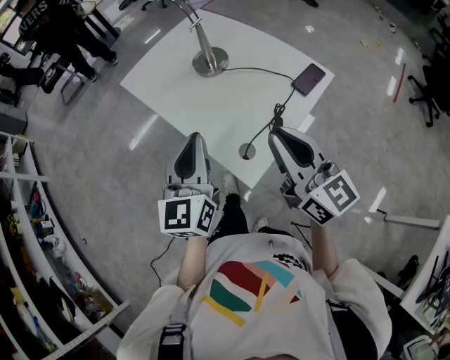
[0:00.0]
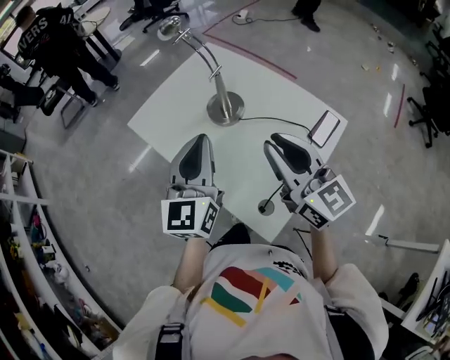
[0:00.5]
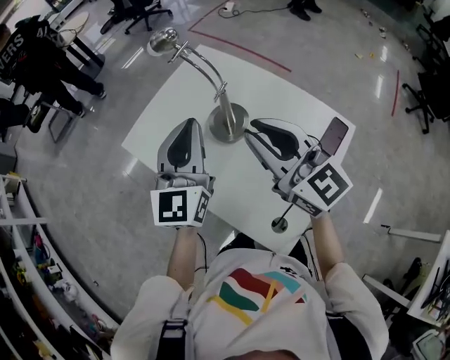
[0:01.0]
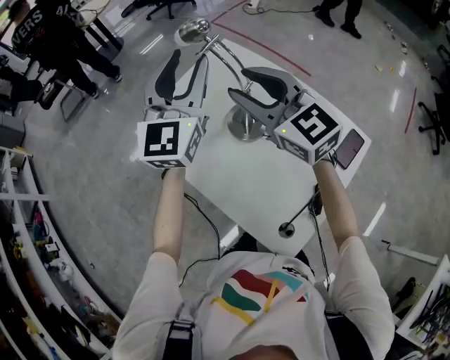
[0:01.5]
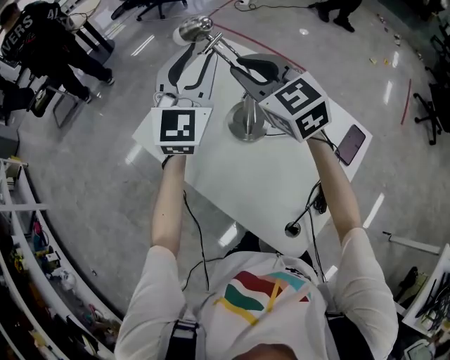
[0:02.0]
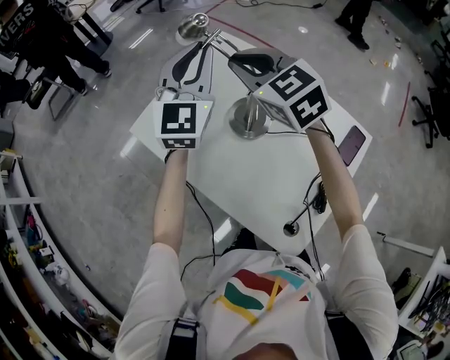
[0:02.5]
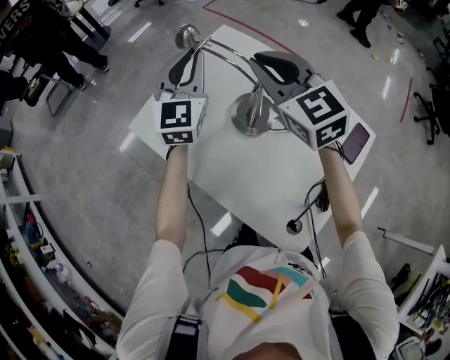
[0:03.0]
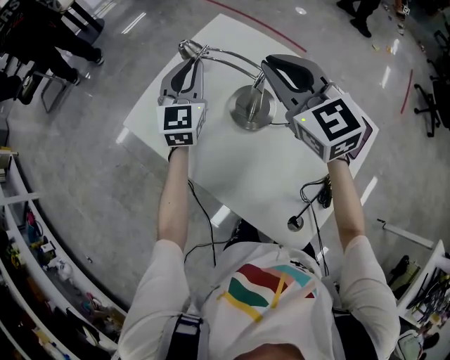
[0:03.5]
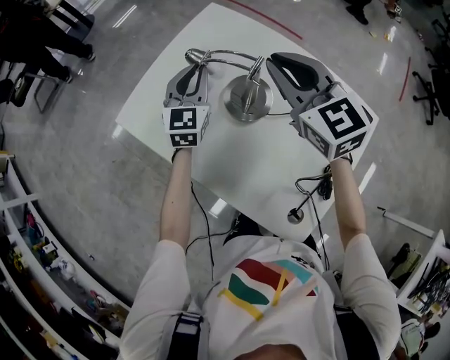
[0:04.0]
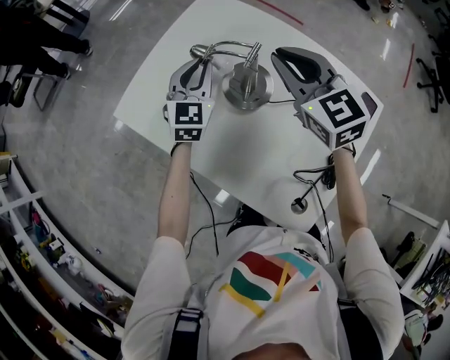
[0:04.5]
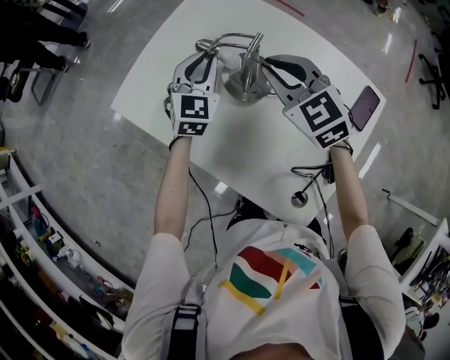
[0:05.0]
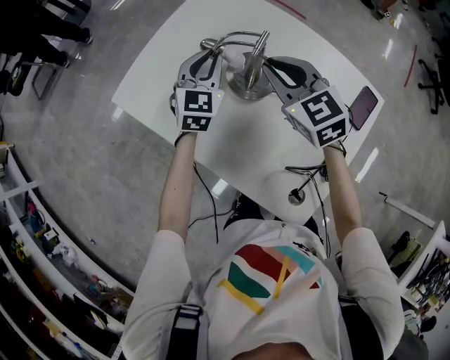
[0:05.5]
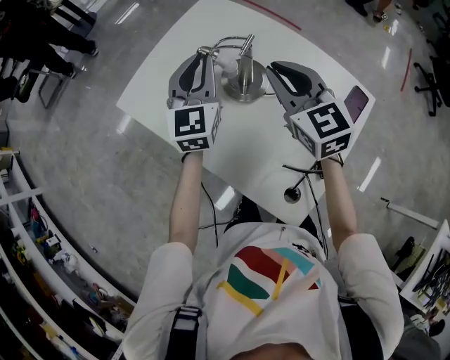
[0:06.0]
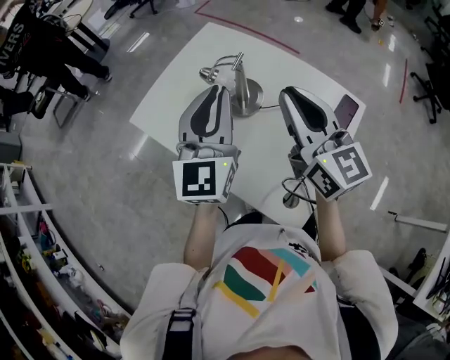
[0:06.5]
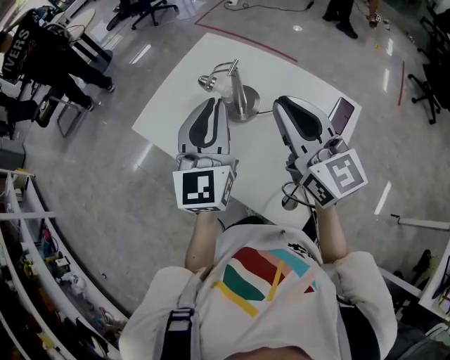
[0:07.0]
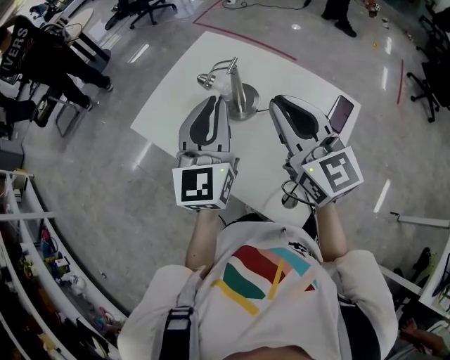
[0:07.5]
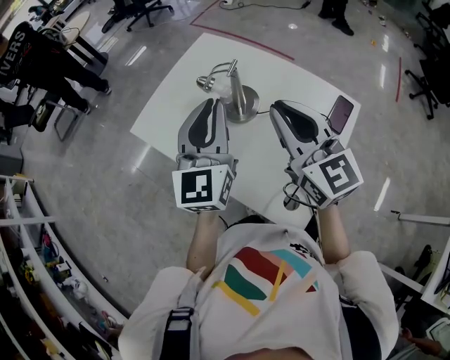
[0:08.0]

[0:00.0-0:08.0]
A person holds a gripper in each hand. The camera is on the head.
0:00.0 to 0:02.0: The pair of grippers is taken forward, roughly 50 cm. The right gripper swivels approximately 30 degrees, and opens and closes again. Meanwhile the left gripper rotates about 30 degrees, and opens.
0:02.0 to 0:04.0: The right gripper goes about 5 cm downward; the left gripper goes roughly 20 cm downward, swivels some 20 degrees, and closes.
0:04.0 to 0:06.0: The right gripper travels backward by some 5 cm, while the left gripper heads backward and upward, covering approximately 10 cm.
0:06.0 to 0:08.0: Both grippers travel together backward and upward, approximately 15 cm.

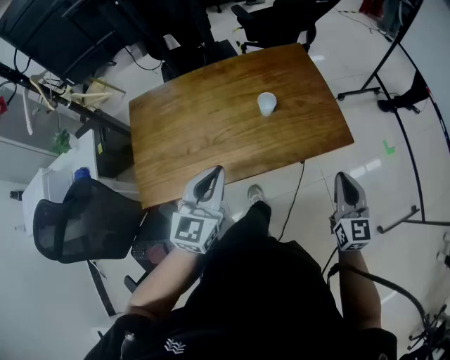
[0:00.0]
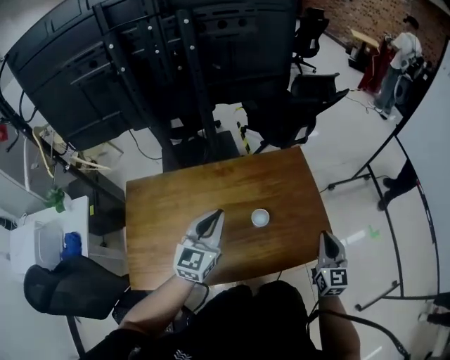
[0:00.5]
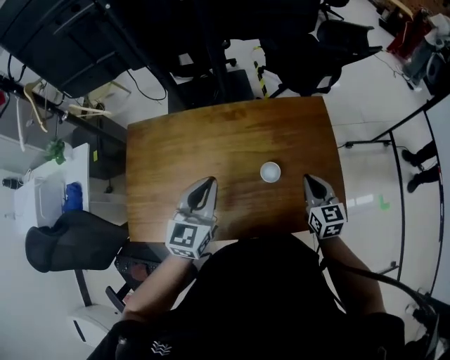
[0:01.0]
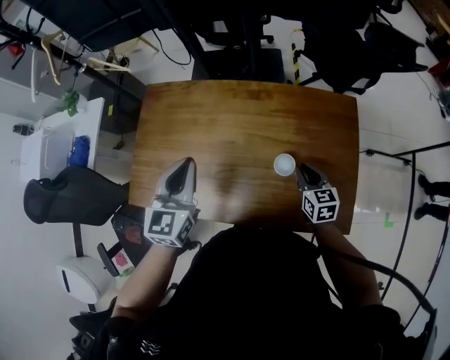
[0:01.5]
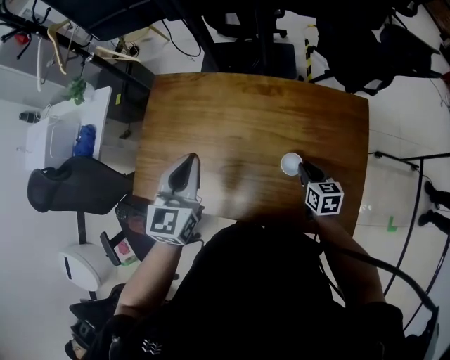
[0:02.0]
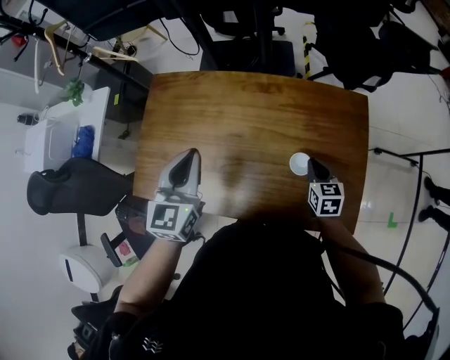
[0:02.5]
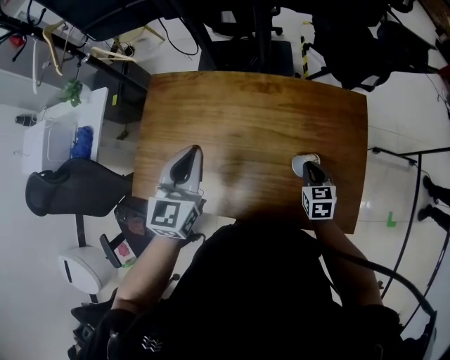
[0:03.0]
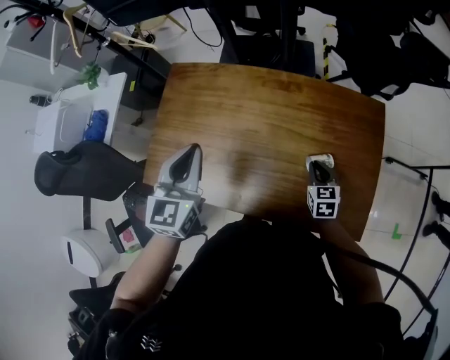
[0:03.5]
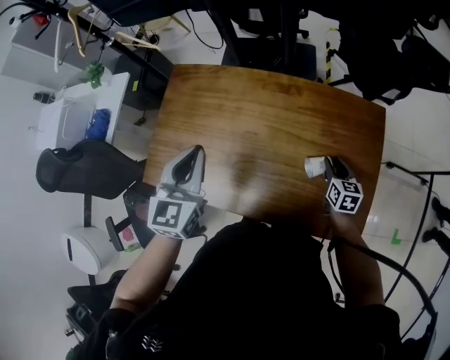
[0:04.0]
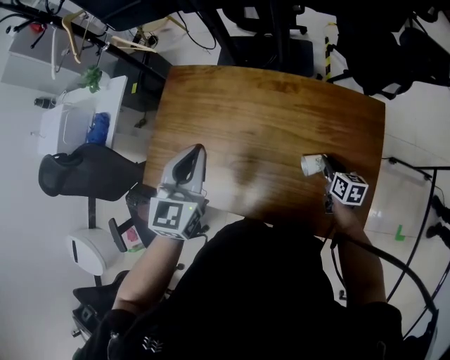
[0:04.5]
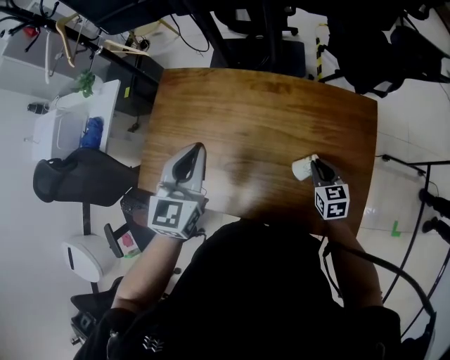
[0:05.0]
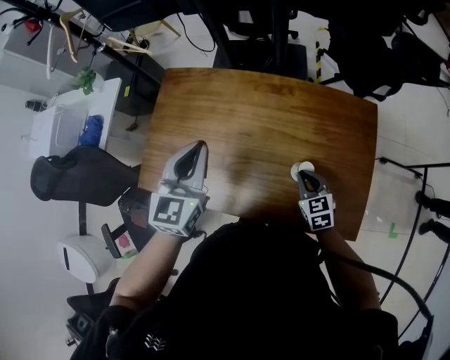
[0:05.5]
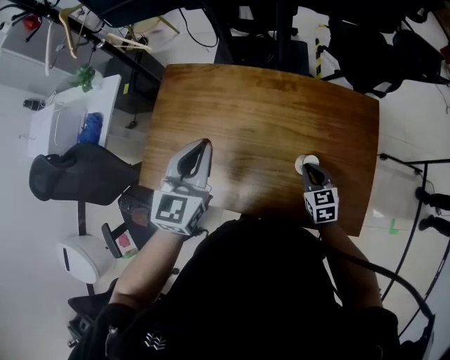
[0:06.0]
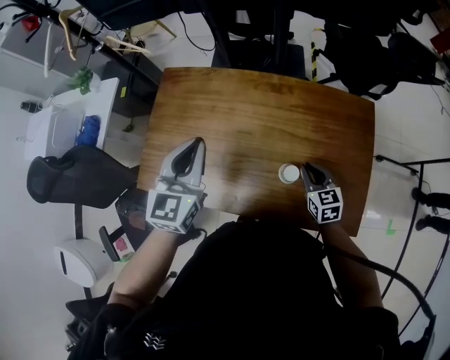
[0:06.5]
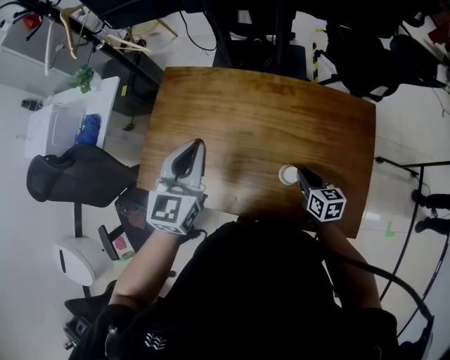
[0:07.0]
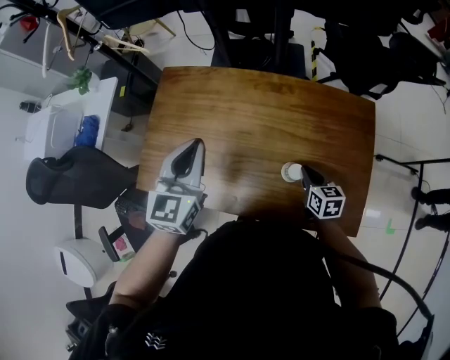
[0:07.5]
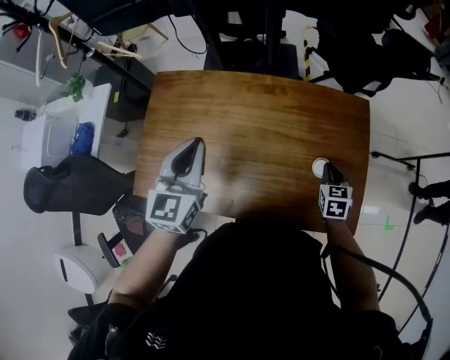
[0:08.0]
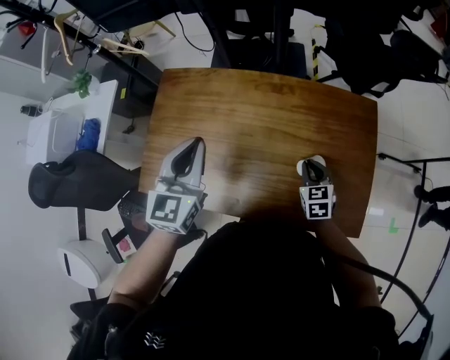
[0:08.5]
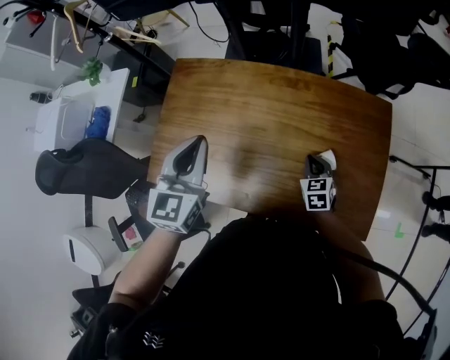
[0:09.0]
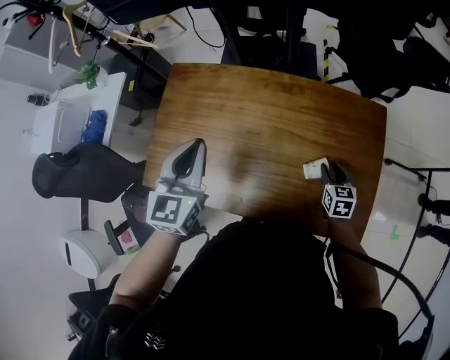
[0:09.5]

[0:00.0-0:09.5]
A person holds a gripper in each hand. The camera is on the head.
0:00.0 to 0:02.0: The left gripper shifts by some 15 cm, and turns by approximately 30 degrees; the right gripper ends up about 35 cm from where it was, and angles its fingers downward, by roughly 30 degrees.
0:02.0 to 0:04.0: The right gripper is displaced to the right by roughly 5 cm.
0:04.0 to 0:05.5: The right gripper goes approximately 10 cm to the left and backward, rotates approximately 30 degrees, and closes.
0:05.5 to 0:07.5: The right gripper changes its angle by about 20 degrees.
0:07.5 to 0:09.5: The right gripper swings left and right, approximately 15 cm each way, with 2 reversals, and opens up.

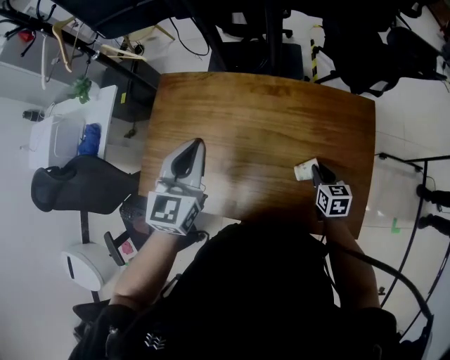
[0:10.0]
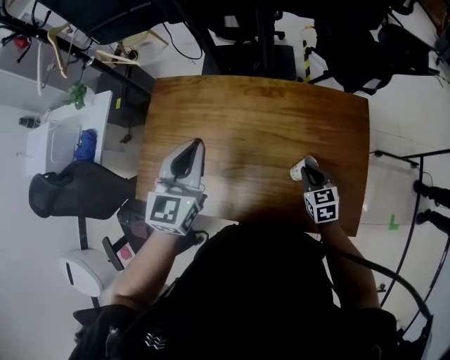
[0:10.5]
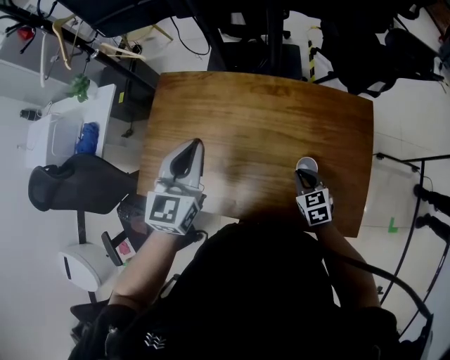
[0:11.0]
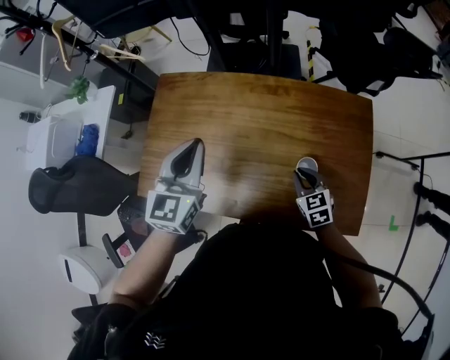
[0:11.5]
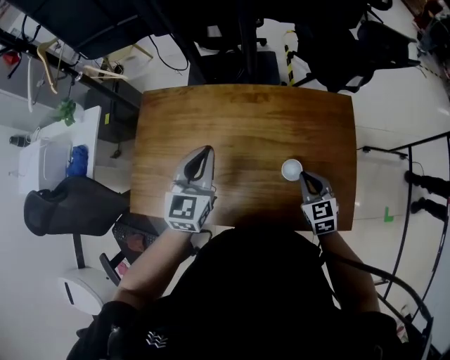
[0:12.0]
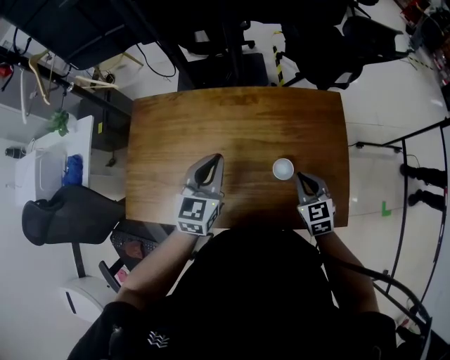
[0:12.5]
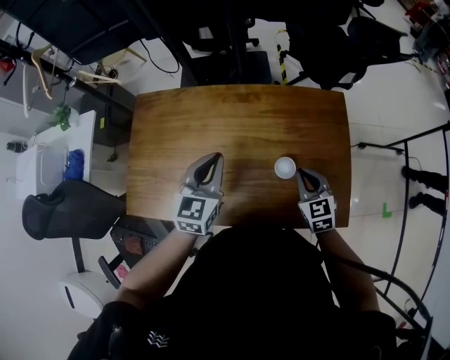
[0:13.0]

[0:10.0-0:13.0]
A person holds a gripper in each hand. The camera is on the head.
0:10.0 to 0:11.5: The right gripper goes some 10 cm to the left, and swivels roughly 20 degrees.
0:11.5 to 0:13.0: The left gripper moves to the right and downward, some 10 cm; the right gripper moves to the right and upward, approximately 10 cm.

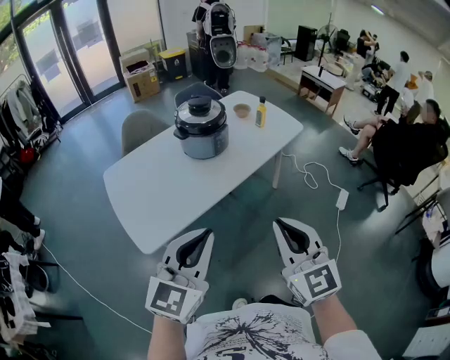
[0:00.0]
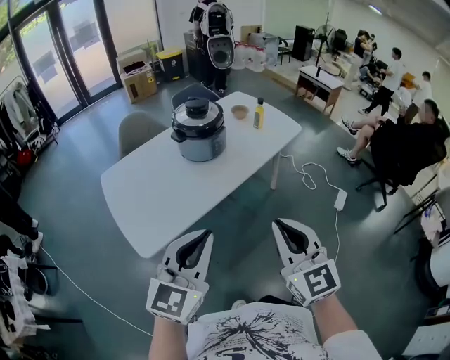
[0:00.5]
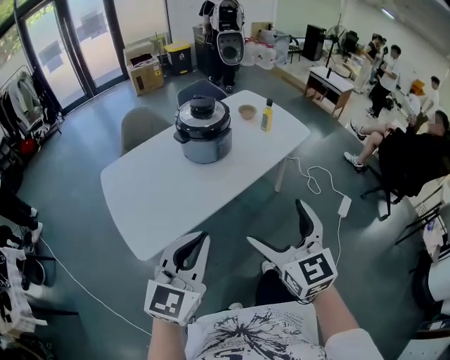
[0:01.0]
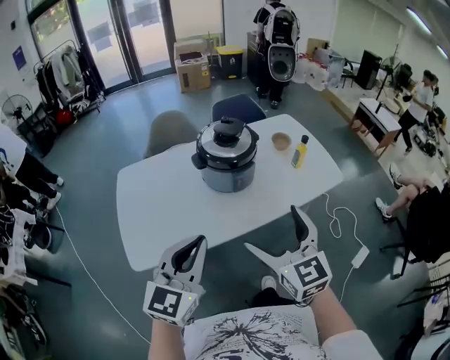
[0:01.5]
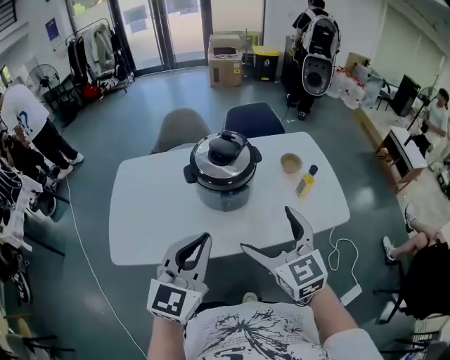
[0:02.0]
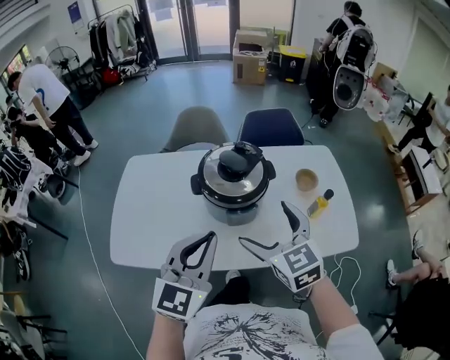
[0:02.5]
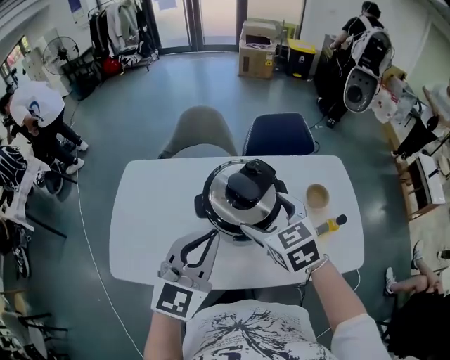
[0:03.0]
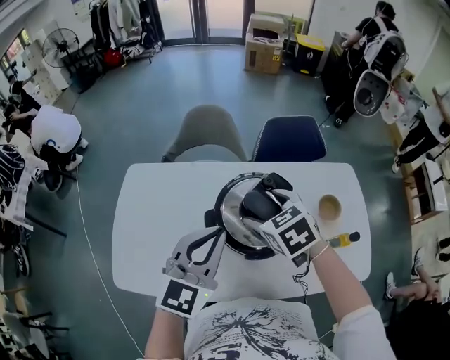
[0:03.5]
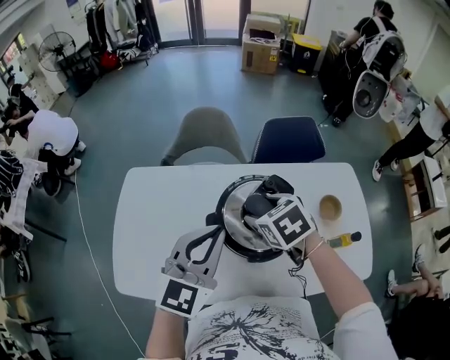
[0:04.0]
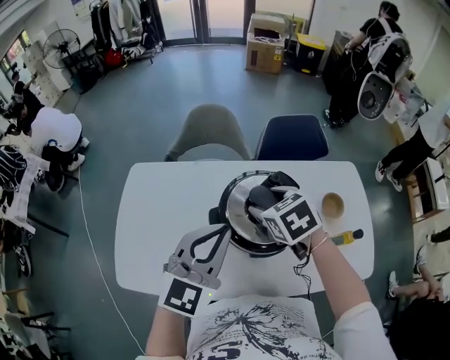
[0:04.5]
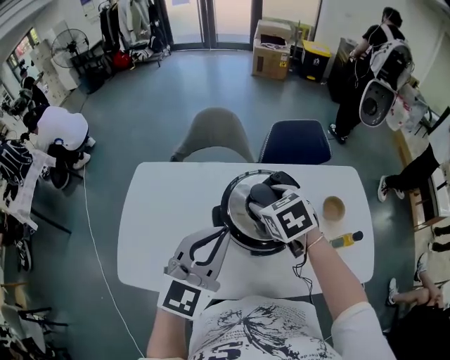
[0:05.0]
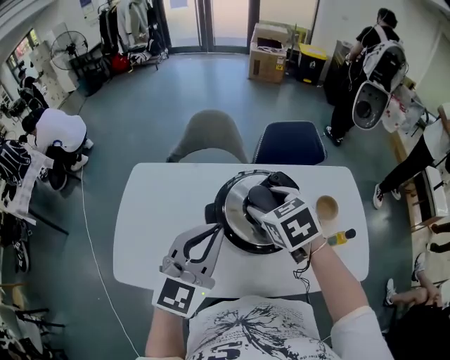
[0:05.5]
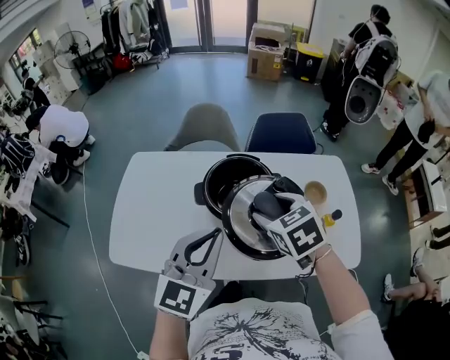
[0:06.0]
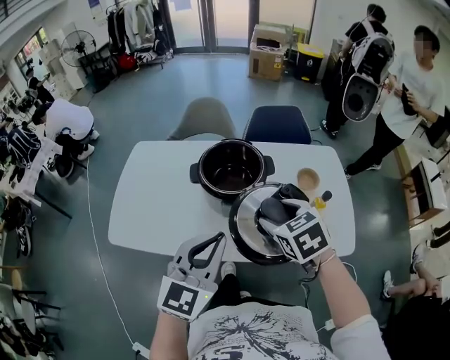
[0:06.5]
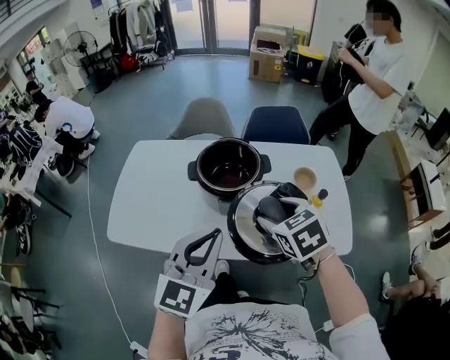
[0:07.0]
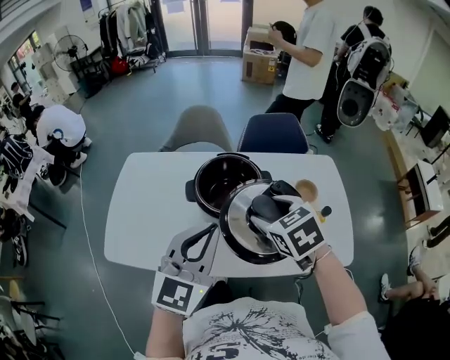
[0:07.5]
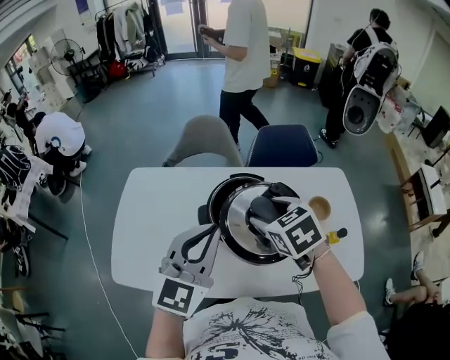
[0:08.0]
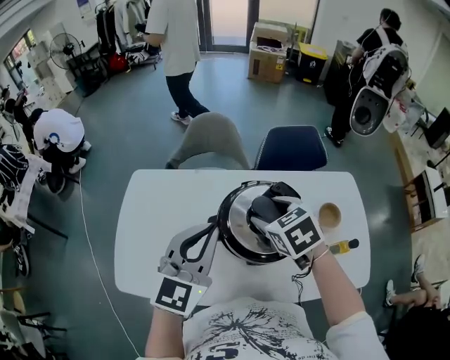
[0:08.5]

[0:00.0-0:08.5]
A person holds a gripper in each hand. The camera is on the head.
0:00.0 to 0:02.0: Both grippers are carried approximately 50 cm. The left gripper rotates approximately 30 degrees; the right gripper changes its angle by approximately 40 degrees, and opens.
0:02.0 to 0:04.0: The grippers both shift forward by approximately 40 cm. The right gripper tilts its fingers some 40 degrees downward, and closes.
0:04.0 to 0:06.5: The grippers both shift backward and to the right by approximately 30 cm.
0:06.5 to 0:08.5: The grippers both shift forward and to the left by some 30 cm.
